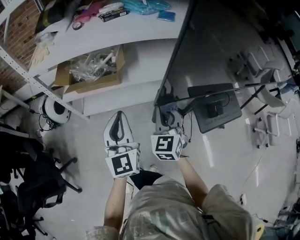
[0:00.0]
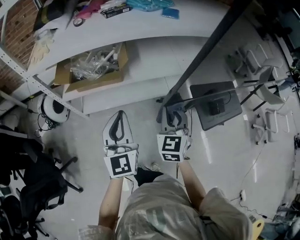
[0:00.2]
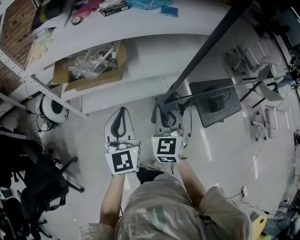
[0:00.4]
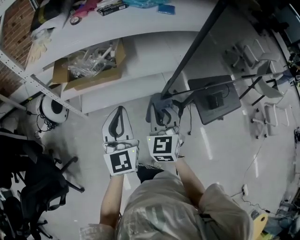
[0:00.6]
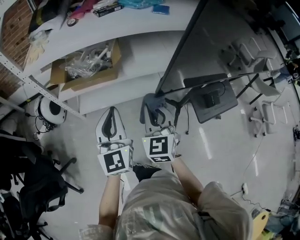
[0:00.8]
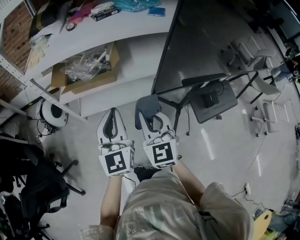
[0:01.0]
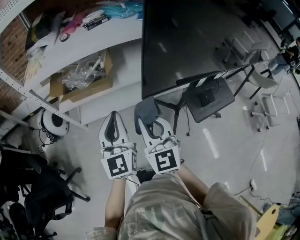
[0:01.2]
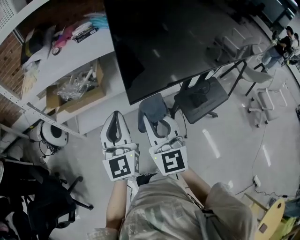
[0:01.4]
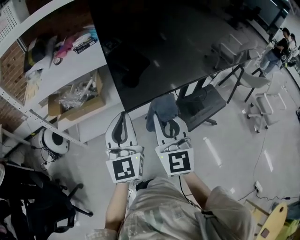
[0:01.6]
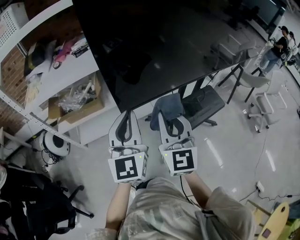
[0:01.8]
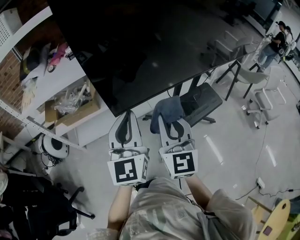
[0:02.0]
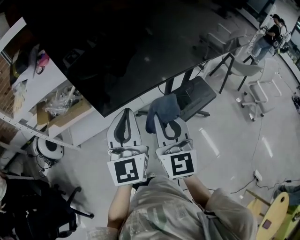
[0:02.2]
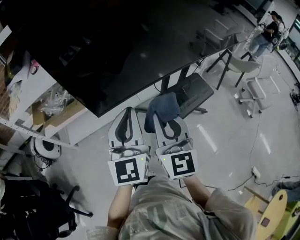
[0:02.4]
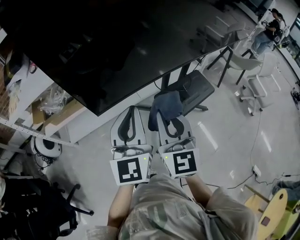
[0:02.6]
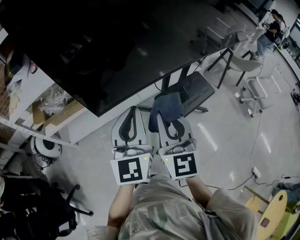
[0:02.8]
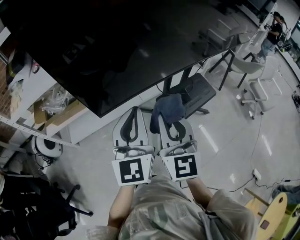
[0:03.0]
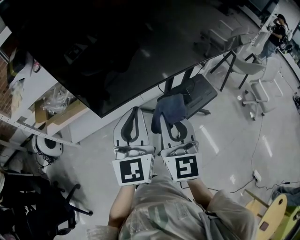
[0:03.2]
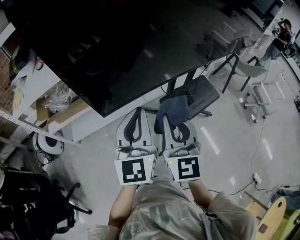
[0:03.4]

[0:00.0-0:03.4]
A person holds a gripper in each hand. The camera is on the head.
0:00.0 to 0:01.6: The left gripper is displaced to the right and upward by approximately 15 cm; the right gripper is displaced upward, backward and to the right by approximately 20 cm, and turns by some 30 degrees.
0:01.6 to 0:03.4: Both grippers travel together to the right, about 10 cm.

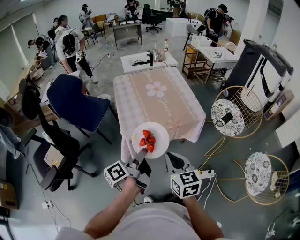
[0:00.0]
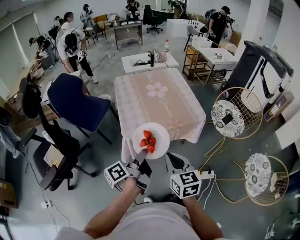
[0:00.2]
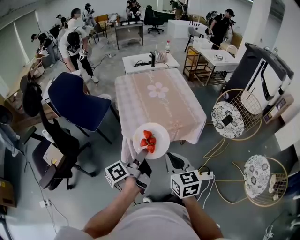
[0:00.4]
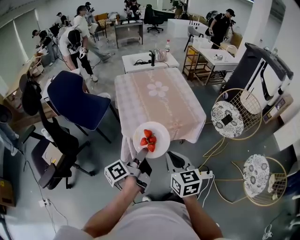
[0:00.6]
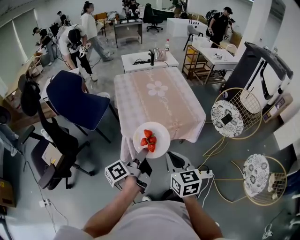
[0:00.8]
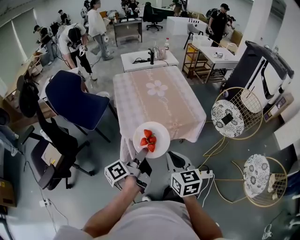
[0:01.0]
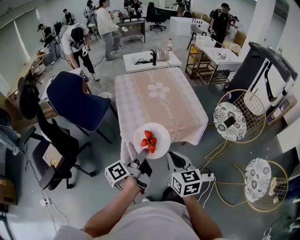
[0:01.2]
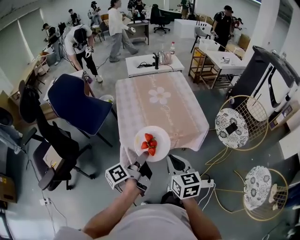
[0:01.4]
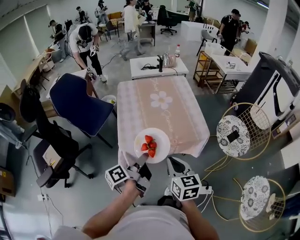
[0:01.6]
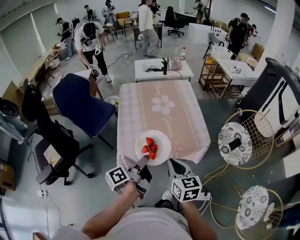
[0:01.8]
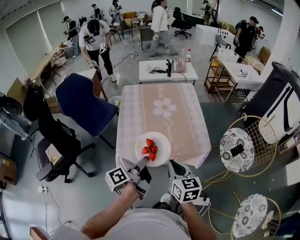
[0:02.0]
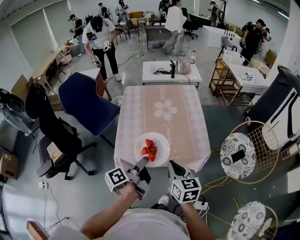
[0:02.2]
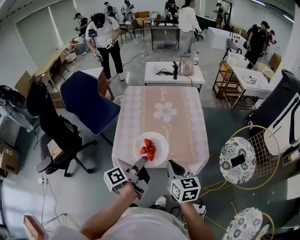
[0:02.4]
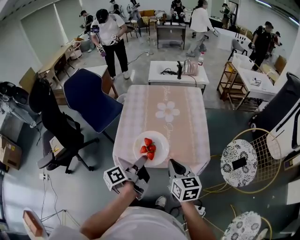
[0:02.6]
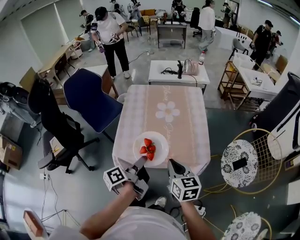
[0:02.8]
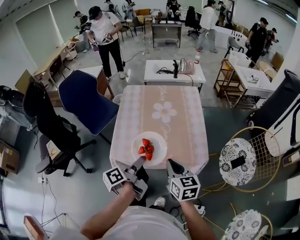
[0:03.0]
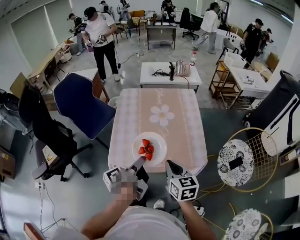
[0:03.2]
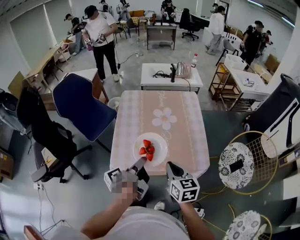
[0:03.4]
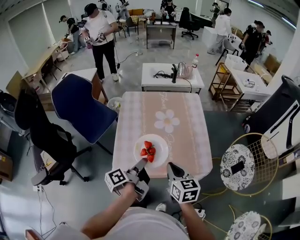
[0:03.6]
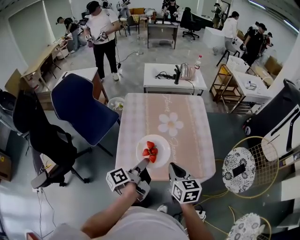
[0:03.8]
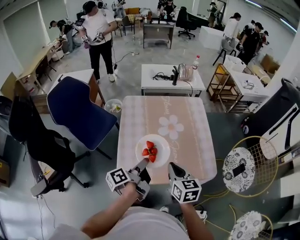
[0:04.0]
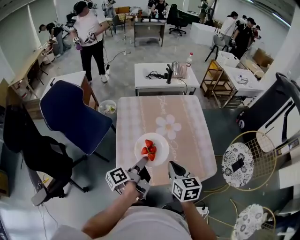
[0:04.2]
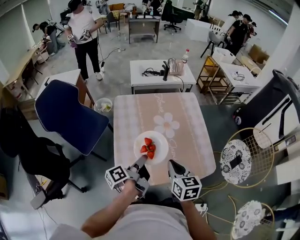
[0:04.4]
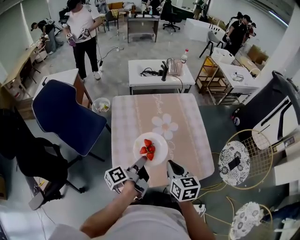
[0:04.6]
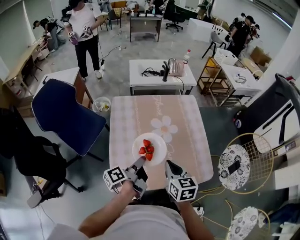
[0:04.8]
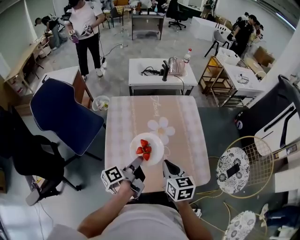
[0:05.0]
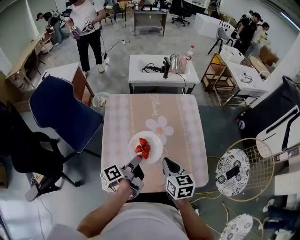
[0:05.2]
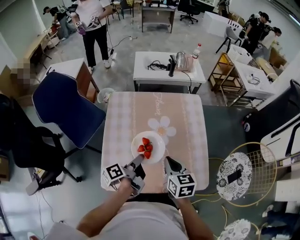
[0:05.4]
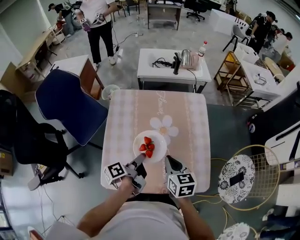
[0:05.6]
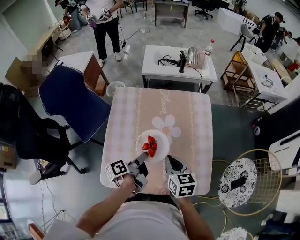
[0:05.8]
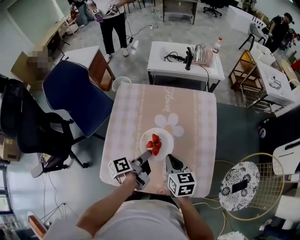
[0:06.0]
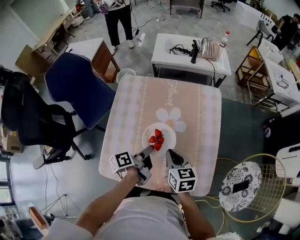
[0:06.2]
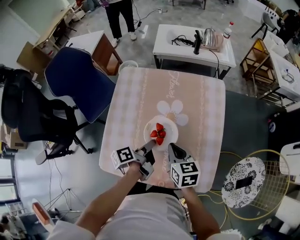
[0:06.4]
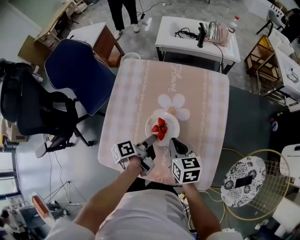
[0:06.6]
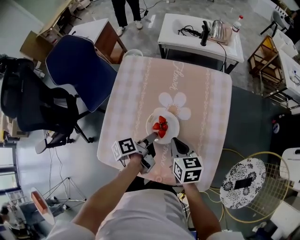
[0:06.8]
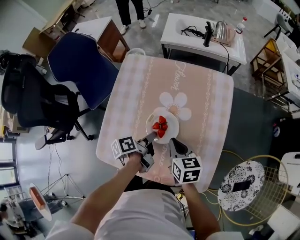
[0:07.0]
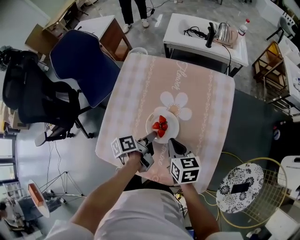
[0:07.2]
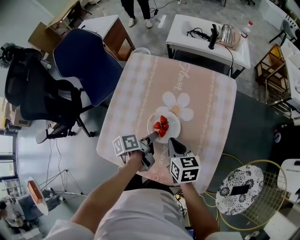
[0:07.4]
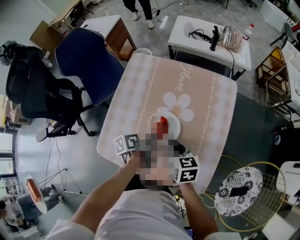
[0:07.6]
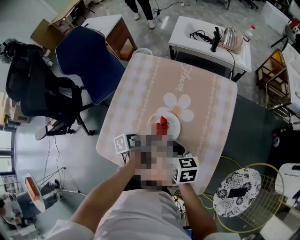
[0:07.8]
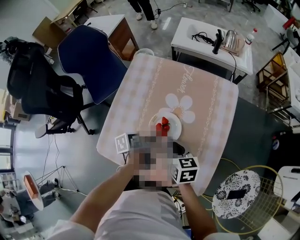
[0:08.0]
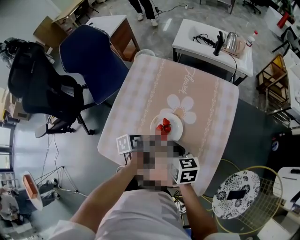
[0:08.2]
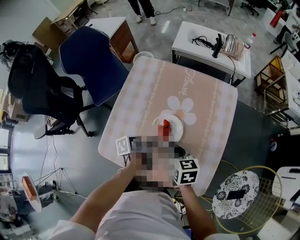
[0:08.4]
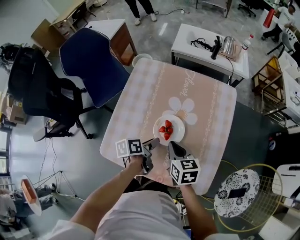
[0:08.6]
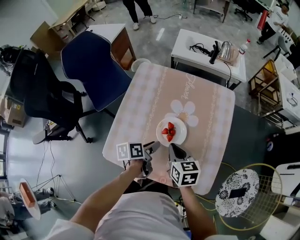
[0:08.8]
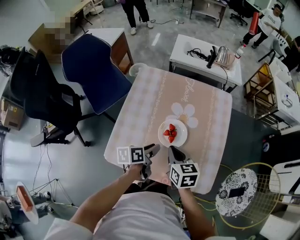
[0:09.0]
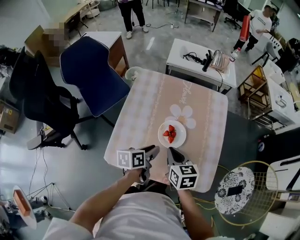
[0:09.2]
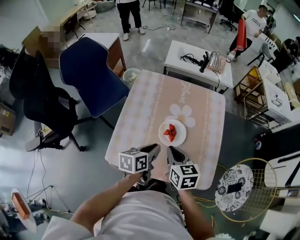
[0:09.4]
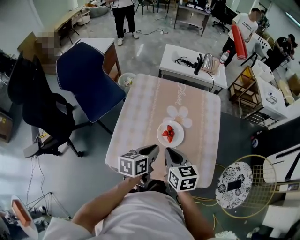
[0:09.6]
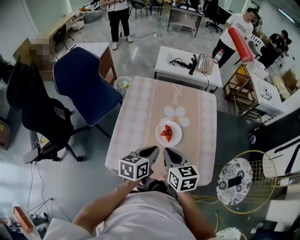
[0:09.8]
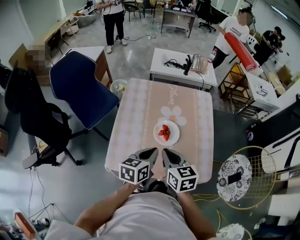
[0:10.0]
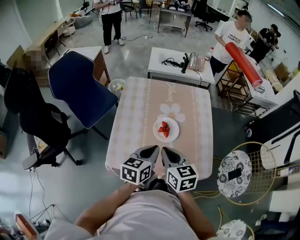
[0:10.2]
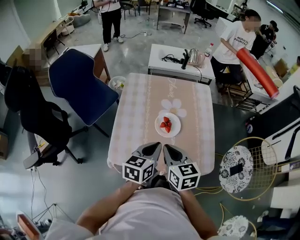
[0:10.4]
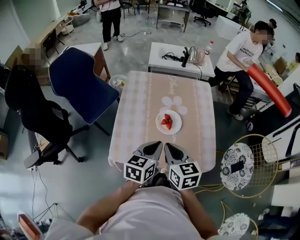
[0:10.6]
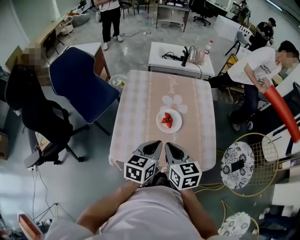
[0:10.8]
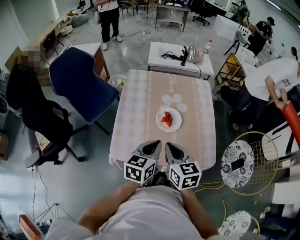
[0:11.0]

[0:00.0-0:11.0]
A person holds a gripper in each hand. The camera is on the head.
0:00.0 to 0:01.6: The right gripper shifts by roughly 10 cm.
0:01.6 to 0:03.2: The right gripper shifts by about 15 cm.
0:03.2 to 0:04.8: The right gripper ends up some 15 cm from where it was.
0:04.8 to 0:06.2: The right gripper ends up approximately 15 cm from where it was.
0:07.8 to 0:09.4: The right gripper ends up roughly 10 cm from where it was.
0:09.4 to 0:11.0: The right gripper shifts by roughly 10 cm.

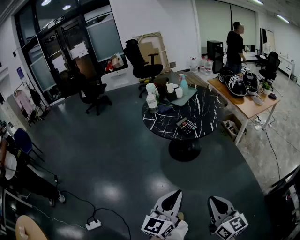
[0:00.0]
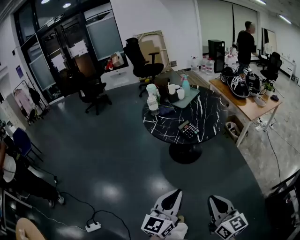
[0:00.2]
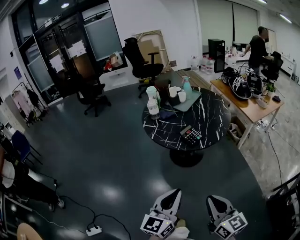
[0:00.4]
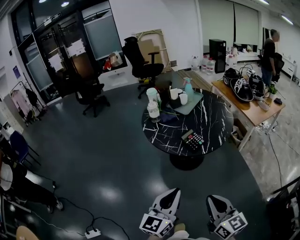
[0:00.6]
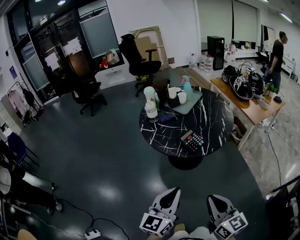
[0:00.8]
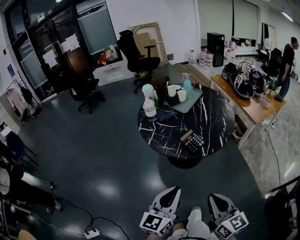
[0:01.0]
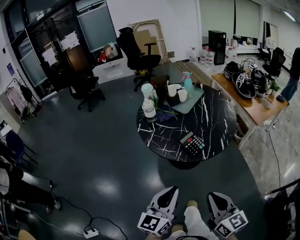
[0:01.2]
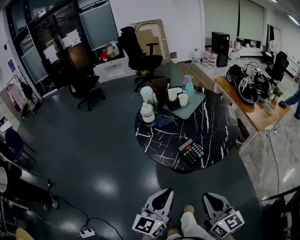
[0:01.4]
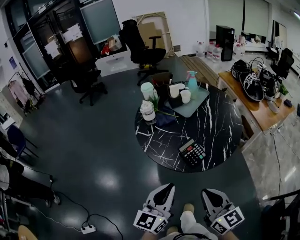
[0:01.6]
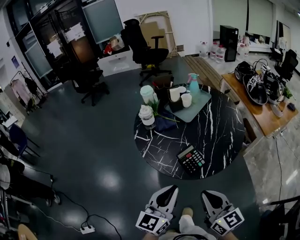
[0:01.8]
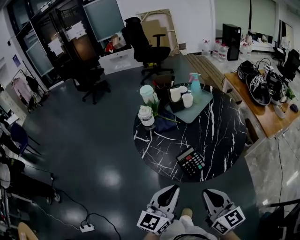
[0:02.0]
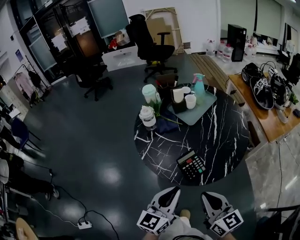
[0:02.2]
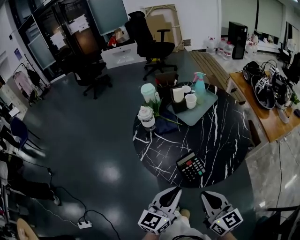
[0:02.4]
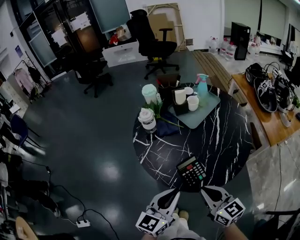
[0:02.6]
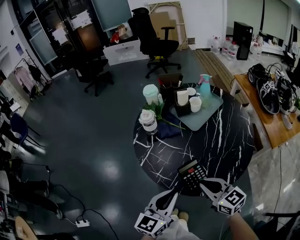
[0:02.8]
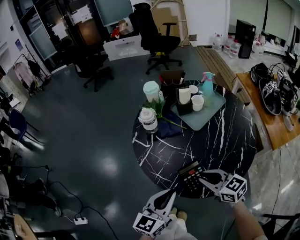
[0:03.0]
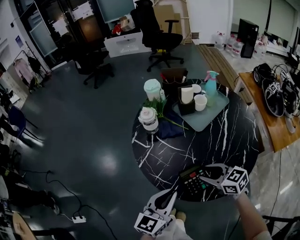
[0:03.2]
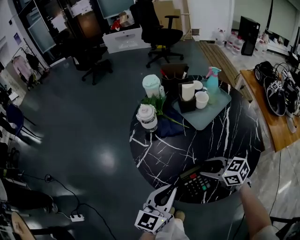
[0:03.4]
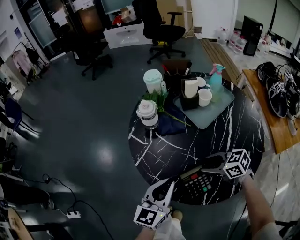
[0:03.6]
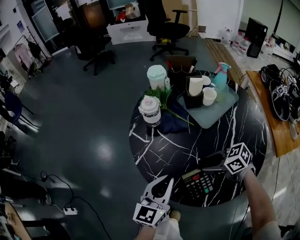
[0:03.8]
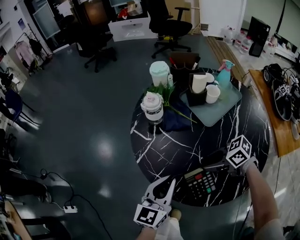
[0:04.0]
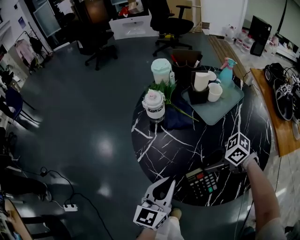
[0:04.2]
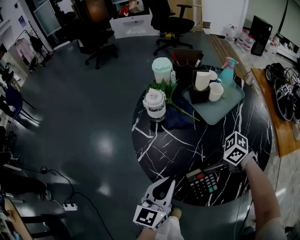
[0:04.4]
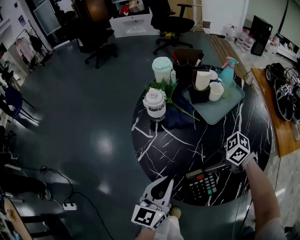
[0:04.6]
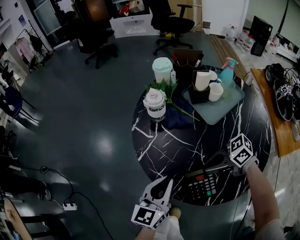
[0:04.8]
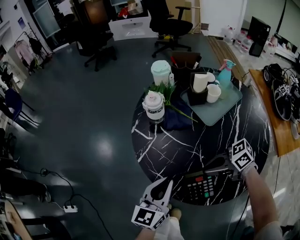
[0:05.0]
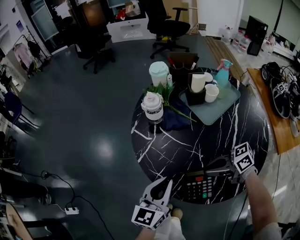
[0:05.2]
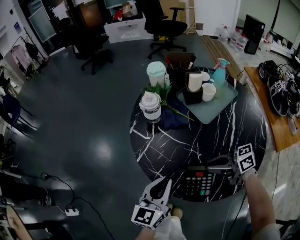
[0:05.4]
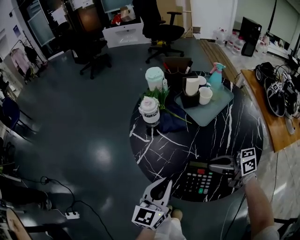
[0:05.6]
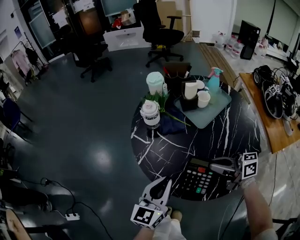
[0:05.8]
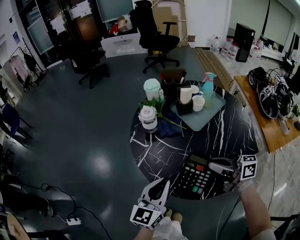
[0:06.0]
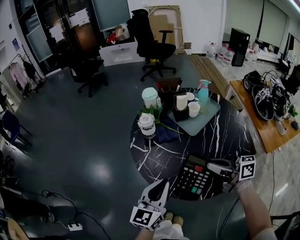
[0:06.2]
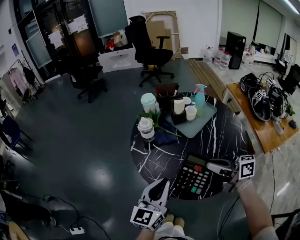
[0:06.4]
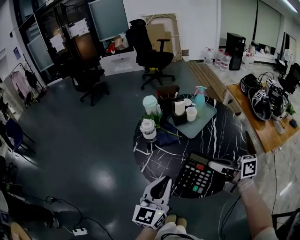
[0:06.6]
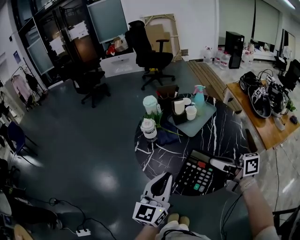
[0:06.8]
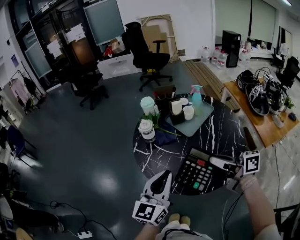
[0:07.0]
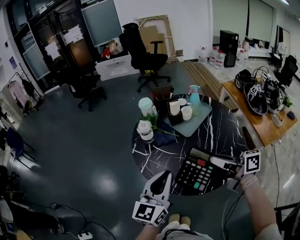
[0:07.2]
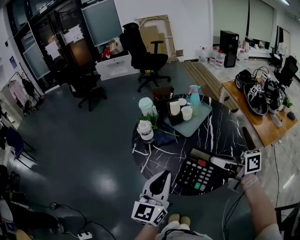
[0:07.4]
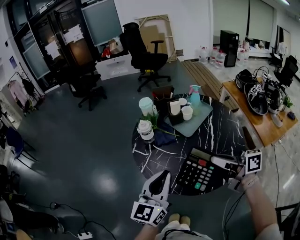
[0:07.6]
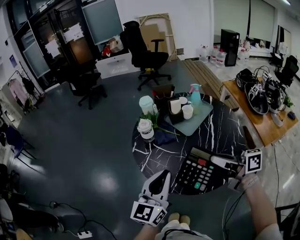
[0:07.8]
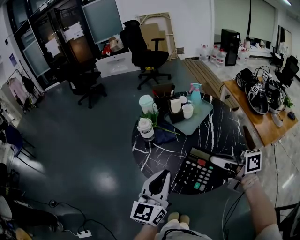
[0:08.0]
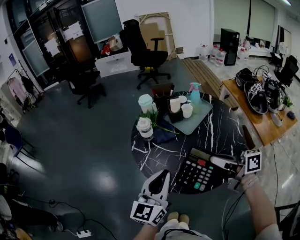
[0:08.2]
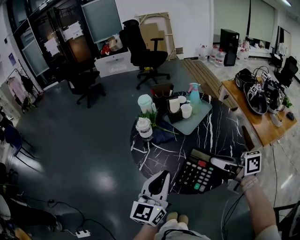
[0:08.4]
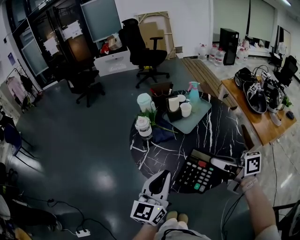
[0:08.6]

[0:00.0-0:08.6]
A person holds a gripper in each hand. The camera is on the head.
0:00.0 to 0:01.4: The two grippers go some 30 cm forward.
0:01.4 to 0:02.8: Both grippers travel together forward, about 20 cm. The right gripper turns by about 30 degrees.
0:02.8 to 0:04.4: The left gripper changes place by roughly 15 cm, while the right gripper heads downward, covering approximately 15 cm, rotates about 60 degrees, and opens its fingers.
0:04.4 to 0:05.8: The right gripper heads upward, covering approximately 10 cm, and angles its fingers upward, by approximately 30 degrees. Meanwhile the left gripper shifts approximately 5 cm upward.
0:05.8 to 0:07.2: The two grippers go approximately 15 cm upward.
0:07.2 to 0:08.6: The grippers move only a little.

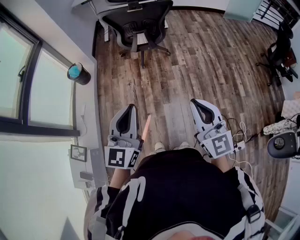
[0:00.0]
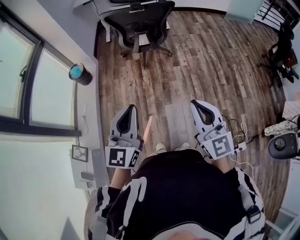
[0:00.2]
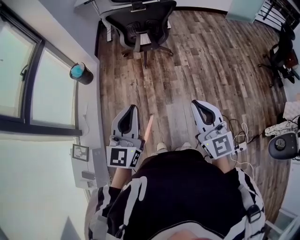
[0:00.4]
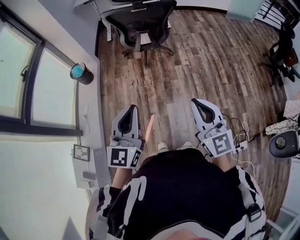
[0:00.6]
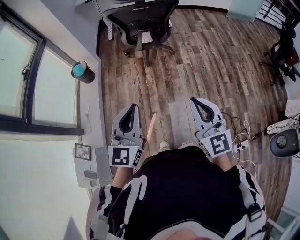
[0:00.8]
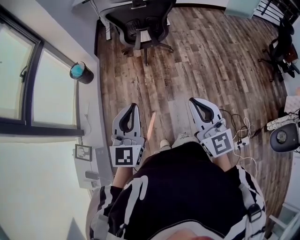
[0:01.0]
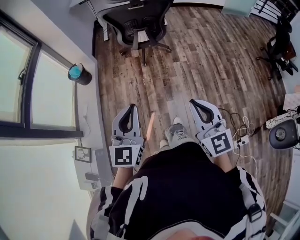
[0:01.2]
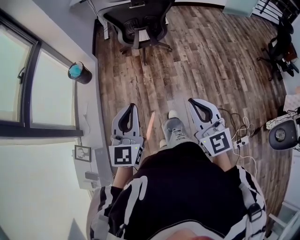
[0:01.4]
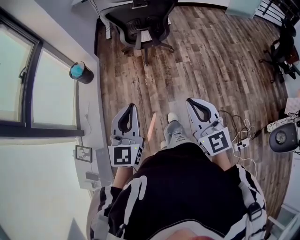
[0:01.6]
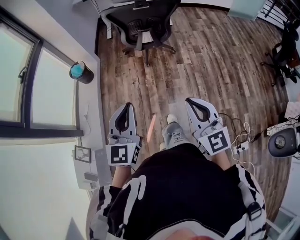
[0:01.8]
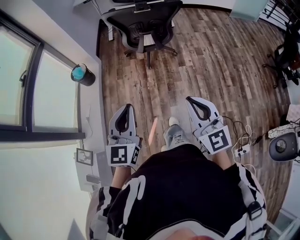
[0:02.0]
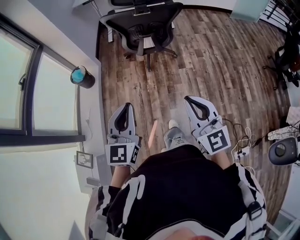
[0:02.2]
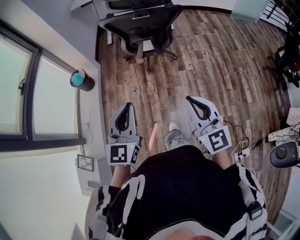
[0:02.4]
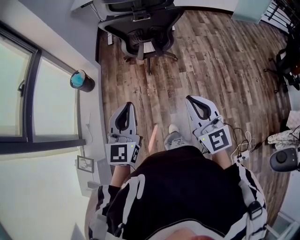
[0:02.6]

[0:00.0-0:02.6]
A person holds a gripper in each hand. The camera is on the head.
0:00.0 to 0:01.2: The grippers move only a little.
0:01.2 to 0:02.6: The two grippers go roughly 15 cm forward.
